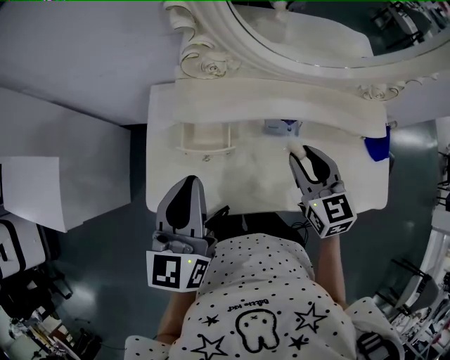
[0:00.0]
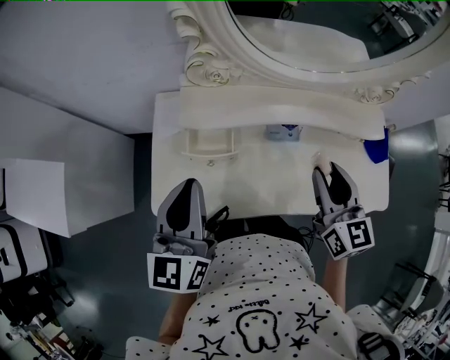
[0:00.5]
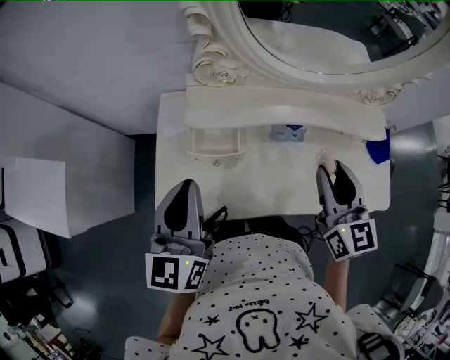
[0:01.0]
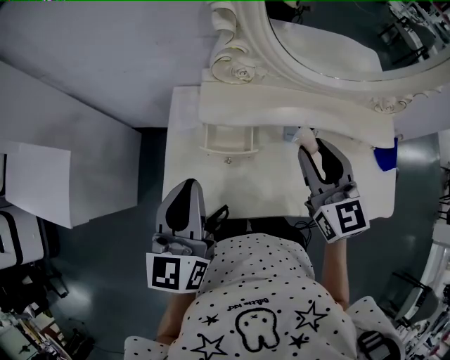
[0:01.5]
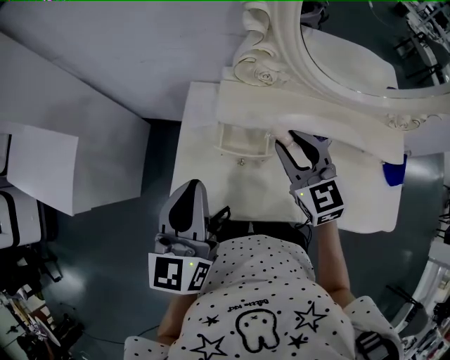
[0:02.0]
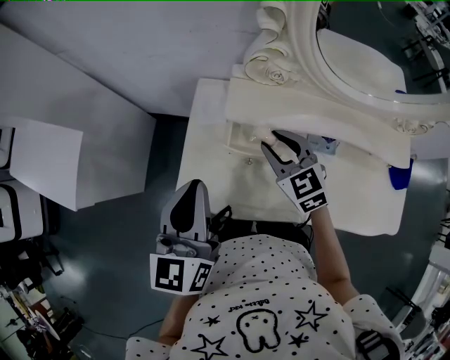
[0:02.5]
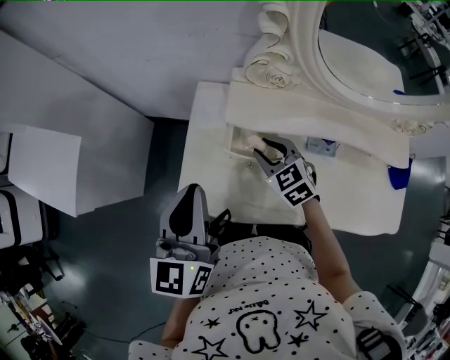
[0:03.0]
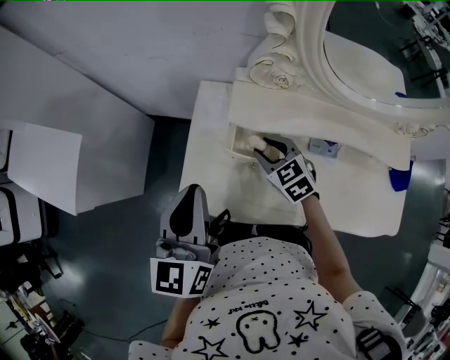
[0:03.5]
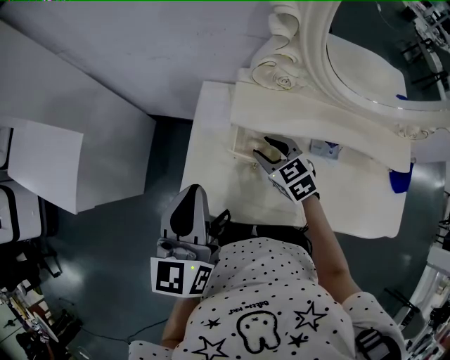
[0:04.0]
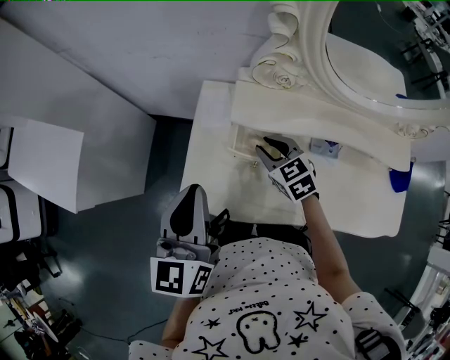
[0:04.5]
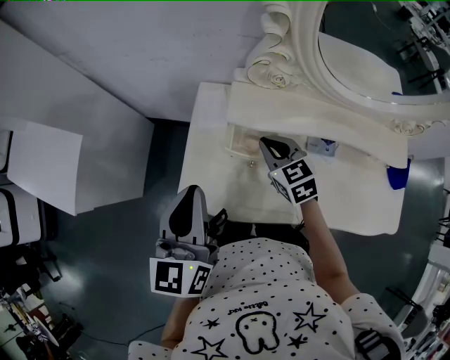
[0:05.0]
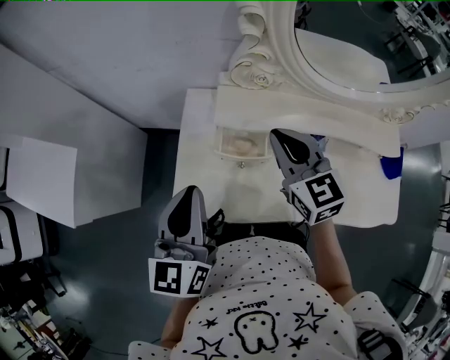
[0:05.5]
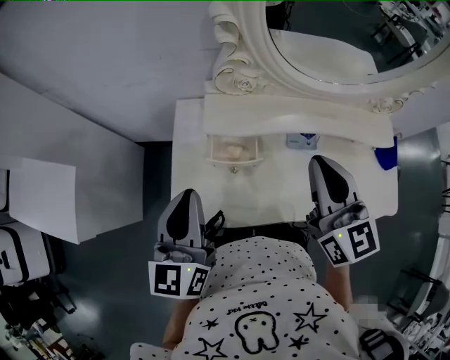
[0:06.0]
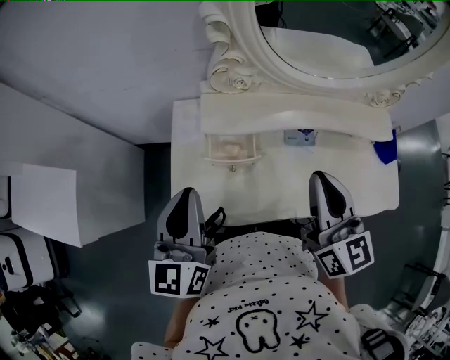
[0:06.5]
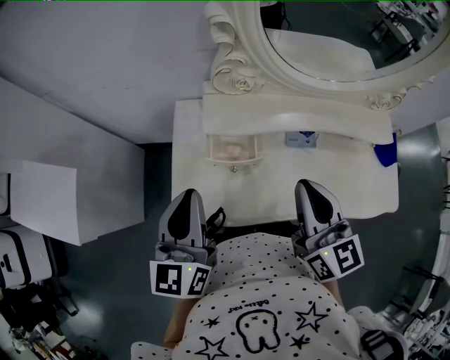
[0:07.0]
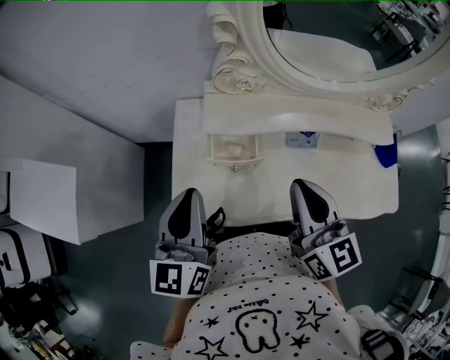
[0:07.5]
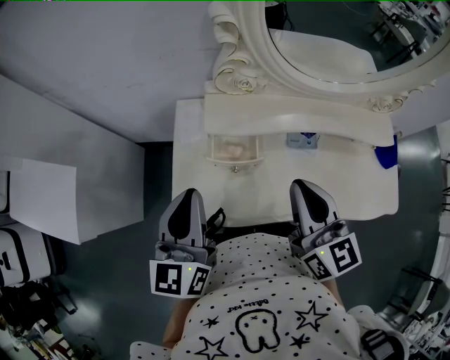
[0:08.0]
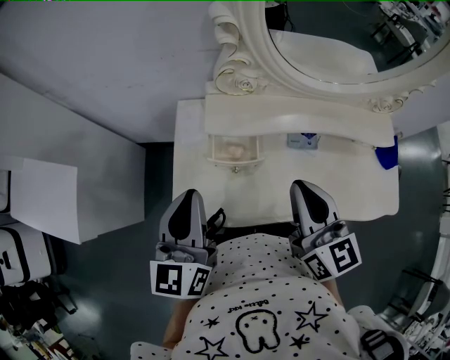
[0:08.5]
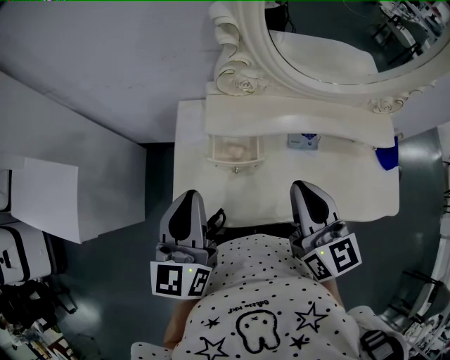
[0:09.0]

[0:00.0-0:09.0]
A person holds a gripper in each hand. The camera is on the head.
0:00.0 to 0:02.0: The left gripper heads to the left, covering about 10 cm. Meanwhile the right gripper shifts roughly 15 cm to the left and forward.
0:02.0 to 0:04.5: The right gripper moves downward and to the left, roughly 15 cm, and turns by roughly 20 degrees.
0:04.5 to 0:07.0: The right gripper moves upward, backward and to the right, roughly 25 cm, tips its fingers upward by roughly 30 degrees, and closes up.
0:07.0 to 0:09.0: Both grippers stay about where they are.

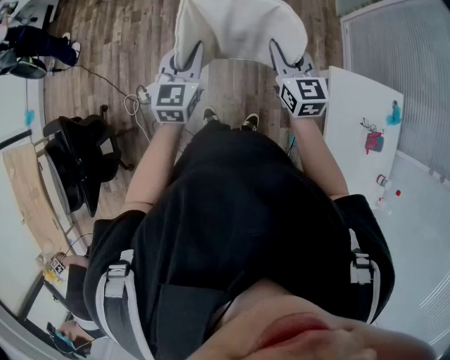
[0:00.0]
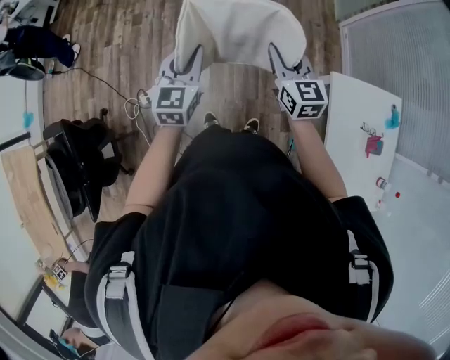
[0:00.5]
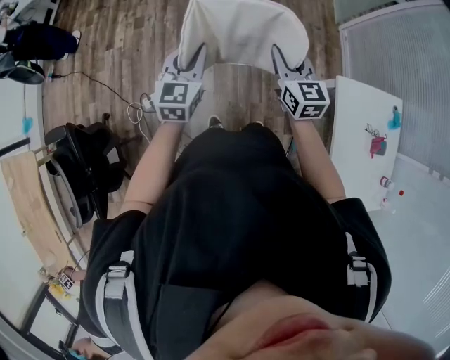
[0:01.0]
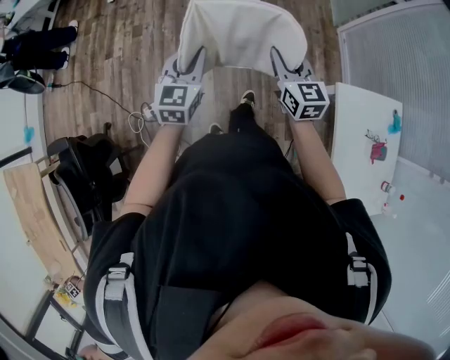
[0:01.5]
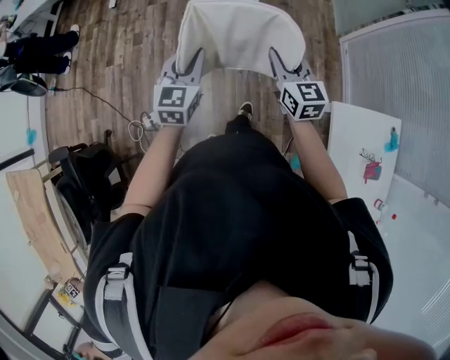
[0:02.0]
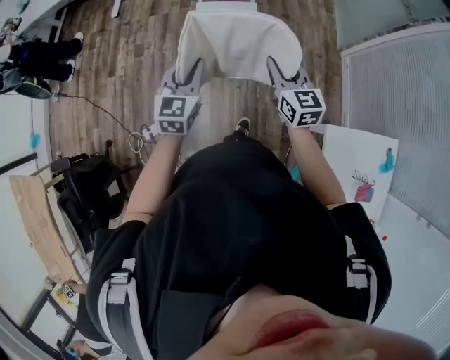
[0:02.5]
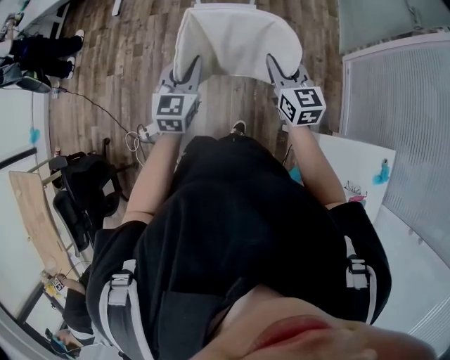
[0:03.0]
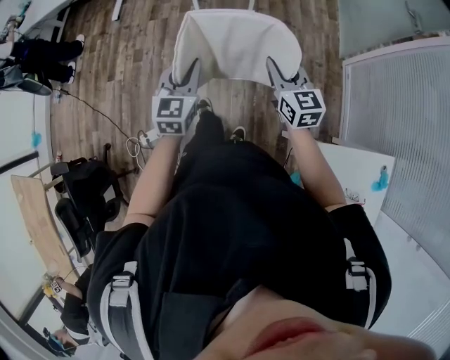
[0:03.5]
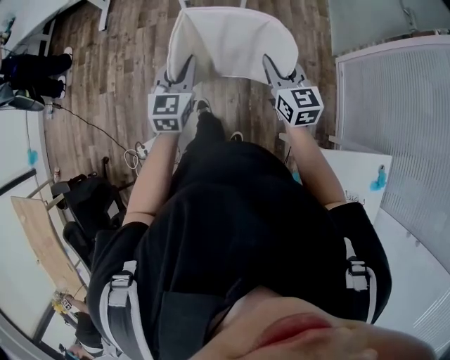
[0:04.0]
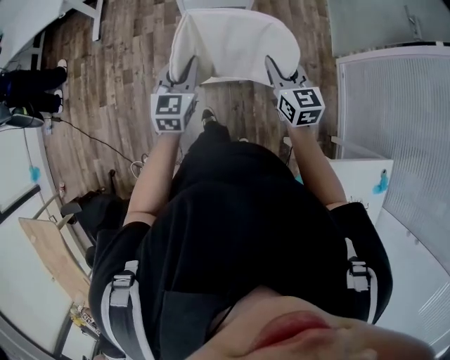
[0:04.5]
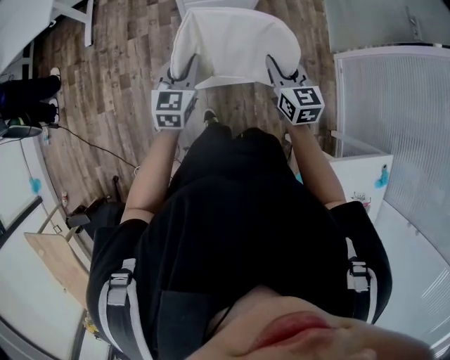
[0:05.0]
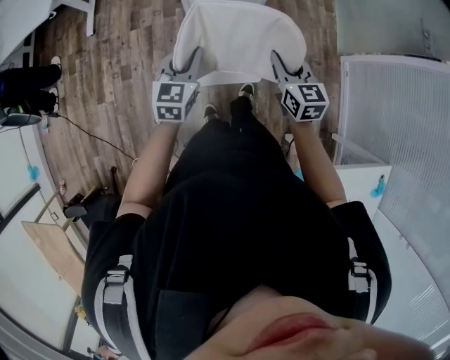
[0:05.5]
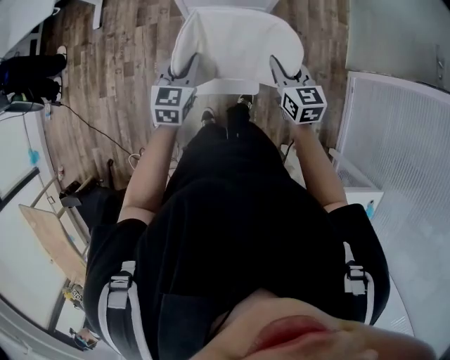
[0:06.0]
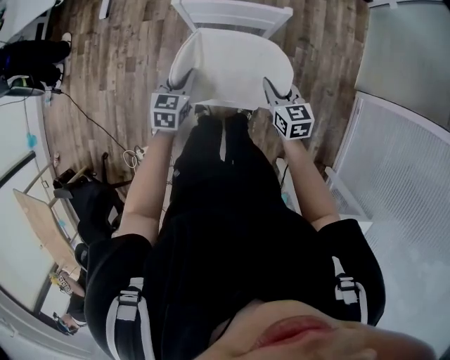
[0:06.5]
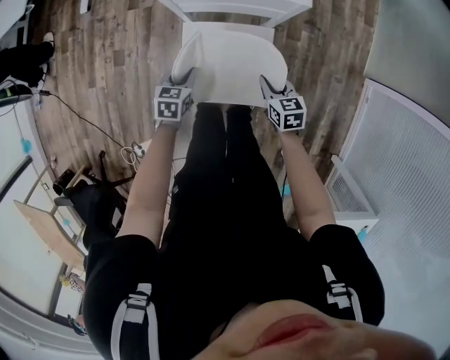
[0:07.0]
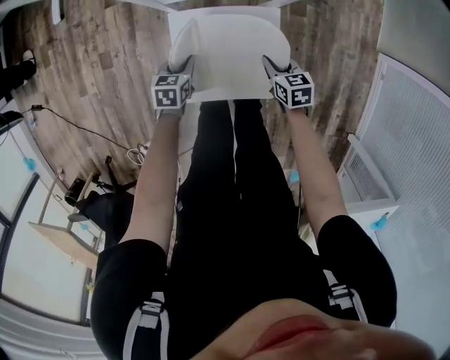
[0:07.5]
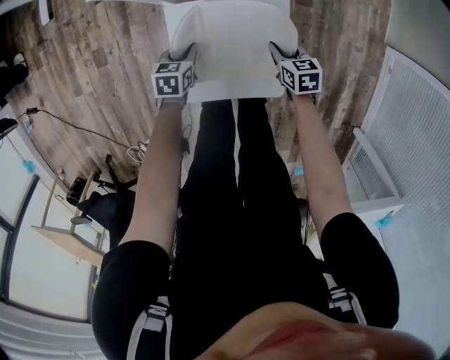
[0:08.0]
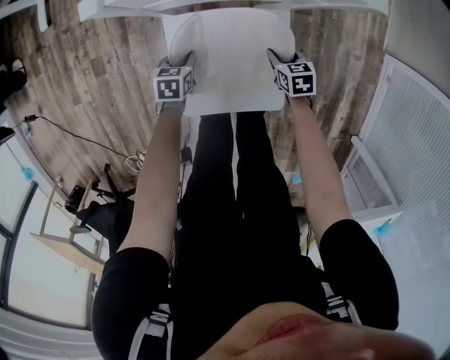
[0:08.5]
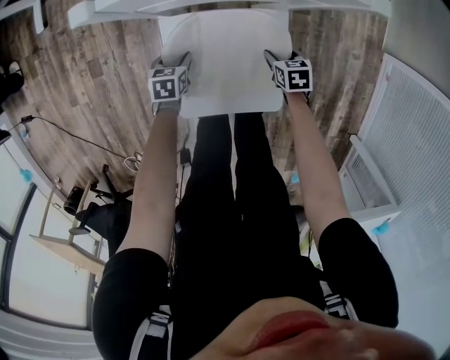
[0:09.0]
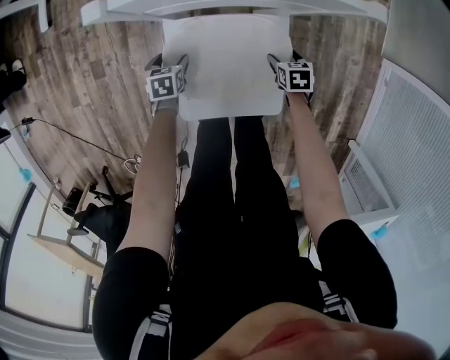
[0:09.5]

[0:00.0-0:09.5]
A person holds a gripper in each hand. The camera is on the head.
0:00.0 to 0:02.0: The left gripper swings forward and backward, some 15 cm each way, with 2 reversals. The right gripper moves forward and backward over approximately 15 cm, changing direction 2 times.
0:02.0 to 0:04.0: The right gripper travels forward and to the right by about 25 cm, while the left gripper shifts some 25 cm forward.
0:04.0 to 0:05.5: Both grippers travel together forward, roughly 20 cm.
0:05.5 to 0:07.5: Both grippers move downward, about 50 cm. The left gripper points its fingers roughly 30 degrees further downward. The right gripper swivels roughly 30 degrees.
0:07.5 to 0:09.5: The right gripper travels downward by some 15 cm, changes its angle by approximately 20 degrees, and opens; the left gripper is displaced downward and to the left by some 15 cm, and opens up.

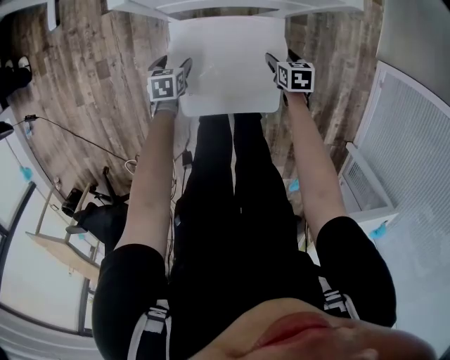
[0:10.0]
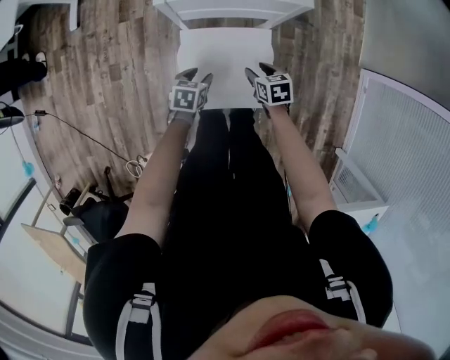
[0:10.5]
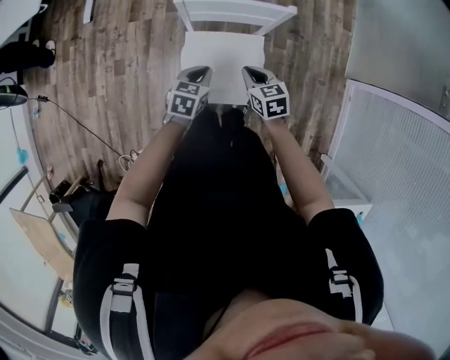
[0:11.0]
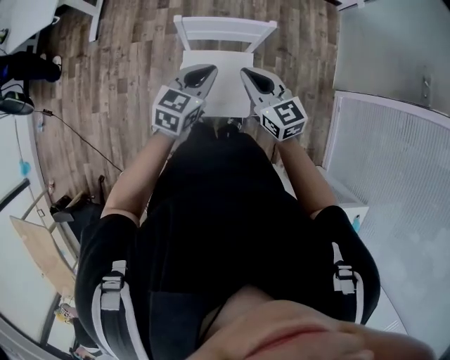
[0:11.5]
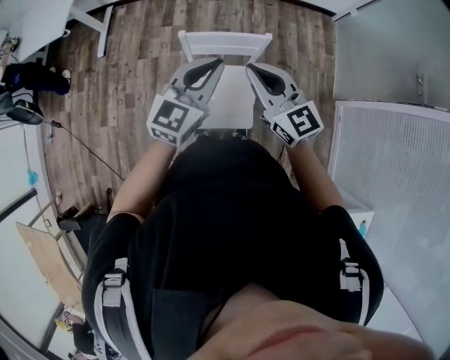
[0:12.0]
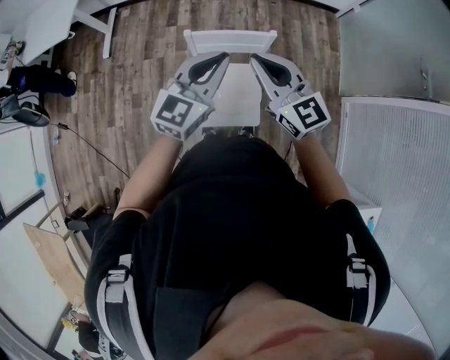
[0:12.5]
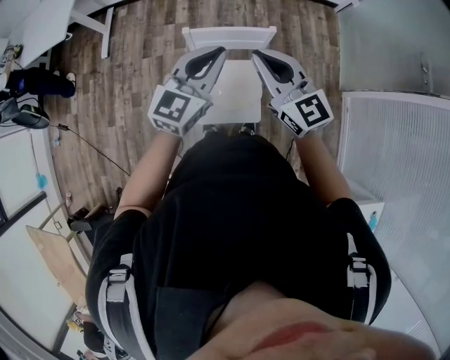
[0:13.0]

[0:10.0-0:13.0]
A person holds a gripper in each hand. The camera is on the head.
0:10.0 to 0:11.5: Both grippers move upward, roughly 60 cm. The left gripper tips its fingers upward by approximately 40 degrees, and closes its fingers. The right gripper tilts its fingers roughly 50 degrees upward, and closes up.
0:11.5 to 0:13.0: The two grippers go roughly 15 cm upward. The left gripper rotates approximately 20 degrees.

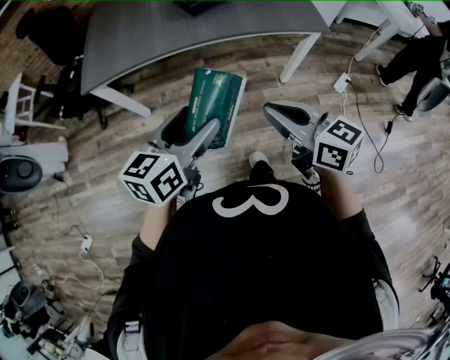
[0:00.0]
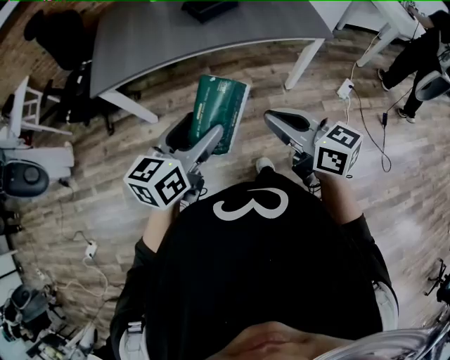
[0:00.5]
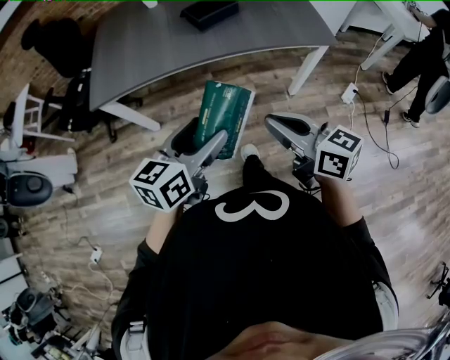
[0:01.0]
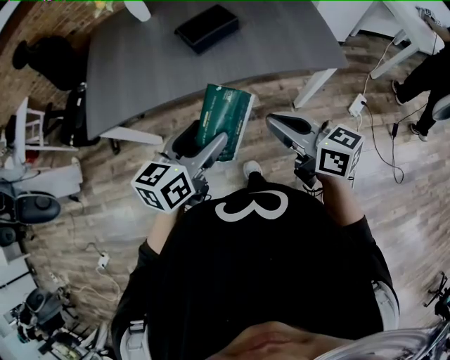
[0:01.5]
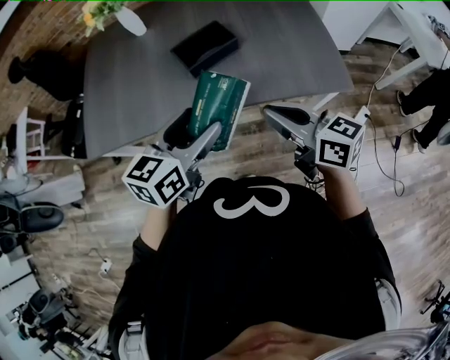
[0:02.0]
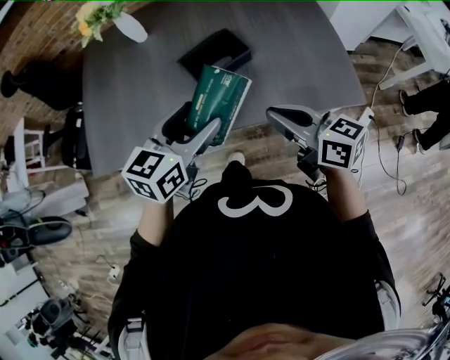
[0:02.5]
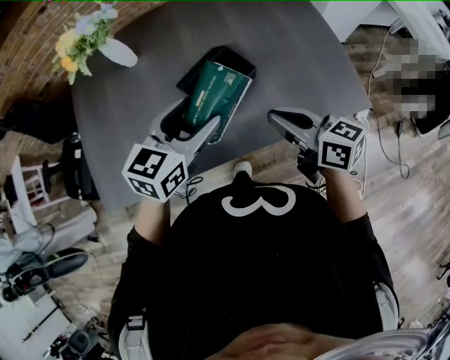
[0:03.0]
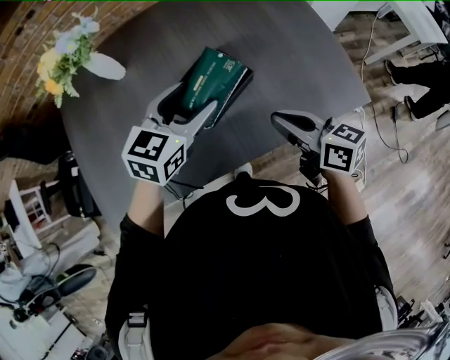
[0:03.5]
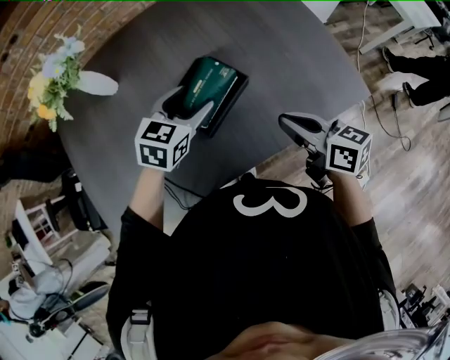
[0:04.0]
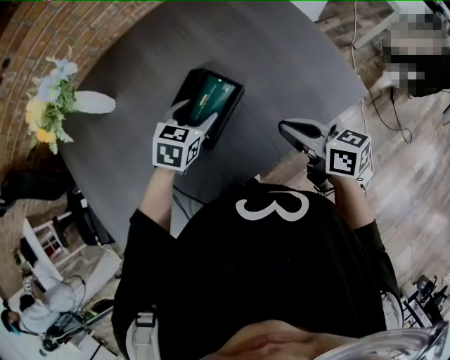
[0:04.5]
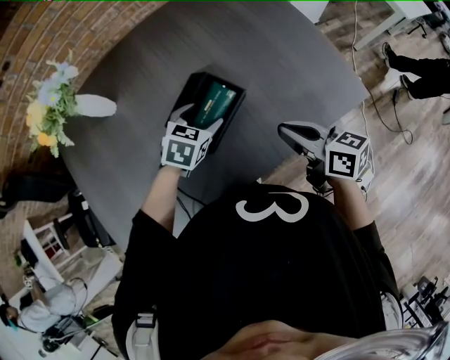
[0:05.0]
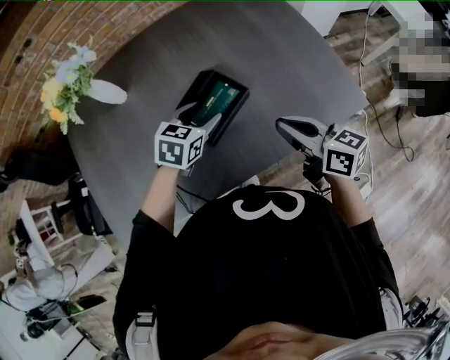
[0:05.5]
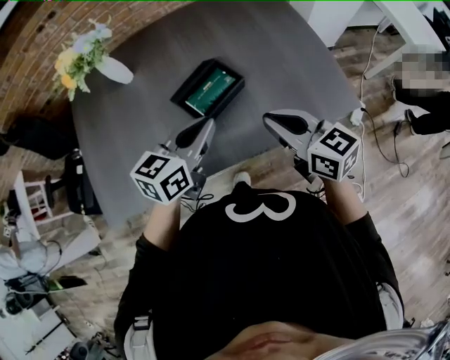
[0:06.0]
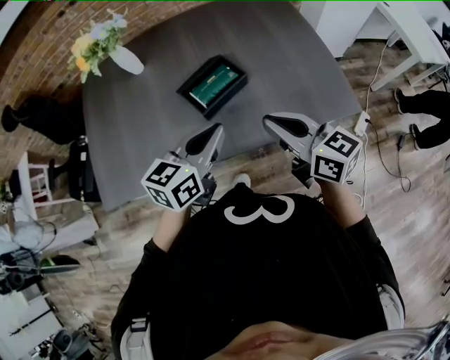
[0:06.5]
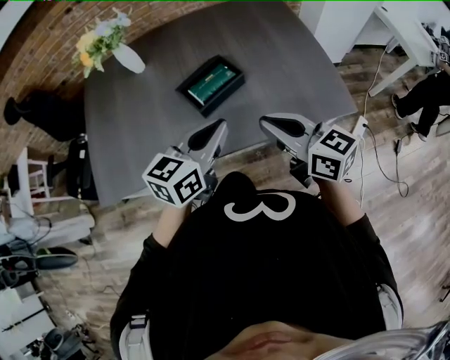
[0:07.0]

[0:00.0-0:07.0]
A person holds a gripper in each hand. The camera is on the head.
0:00.0 to 0:02.0: Both grippers move forward, roughly 25 cm.
0:02.0 to 0:03.5: The left gripper moves forward, roughly 25 cm, and turns by roughly 30 degrees; the right gripper shifts roughly 15 cm forward, and swivels about 20 degrees.
0:03.5 to 0:05.0: The left gripper moves downward, some 15 cm, and turns by some 30 degrees, while the right gripper changes place by roughly 5 cm.
0:05.0 to 0:07.0: The left gripper travels backward and upward by roughly 25 cm, angles its fingers upward, by approximately 40 degrees, and closes up. The right gripper is displaced backward and upward by roughly 15 cm, and turns by some 30 degrees.
